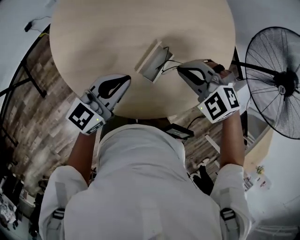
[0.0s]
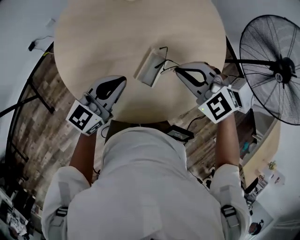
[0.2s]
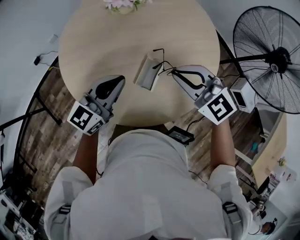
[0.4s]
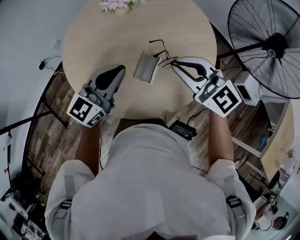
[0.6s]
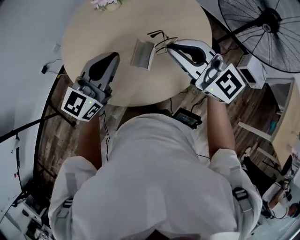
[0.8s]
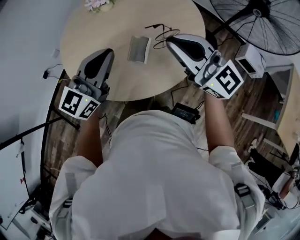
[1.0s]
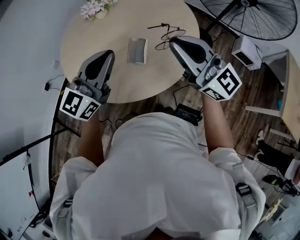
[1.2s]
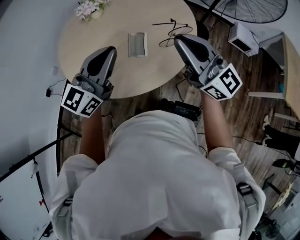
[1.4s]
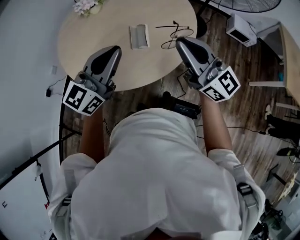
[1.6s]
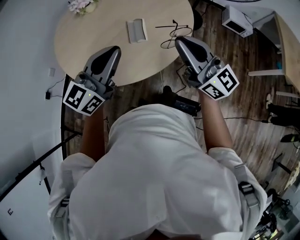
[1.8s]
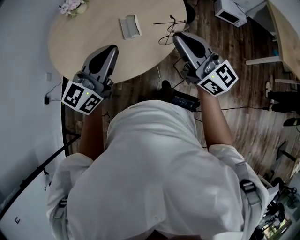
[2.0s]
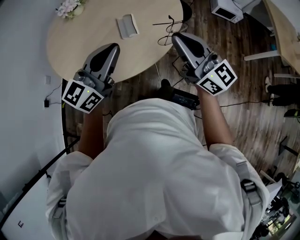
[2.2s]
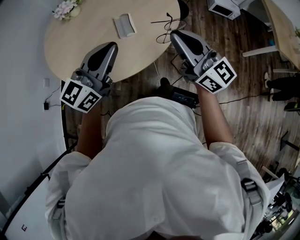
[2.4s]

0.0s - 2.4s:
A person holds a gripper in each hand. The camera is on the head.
0.0s - 1.2s: The left gripper travels upward by about 25 cm, and turns by roughly 20 degrees, while the right gripper moves upward and backward, about 30 cm, and tilts its fingers roughly 70 degrees upward.
1.2s - 2.4s: The right gripper moves about 20 cm, and changes its angle by some 30 degrees. The left gripper ends up approximately 15 cm from where it was, and rotates roughly 20 degrees.

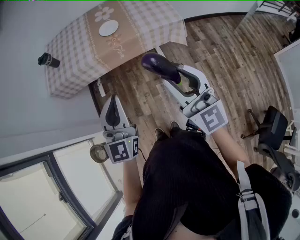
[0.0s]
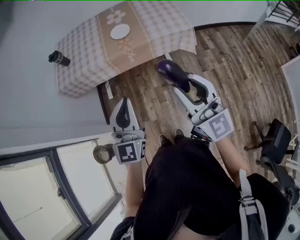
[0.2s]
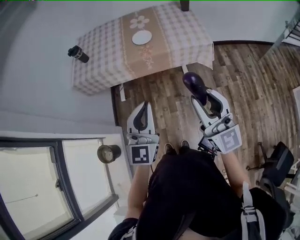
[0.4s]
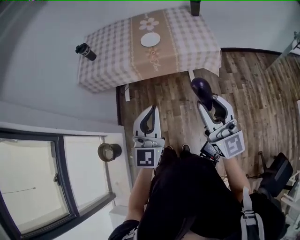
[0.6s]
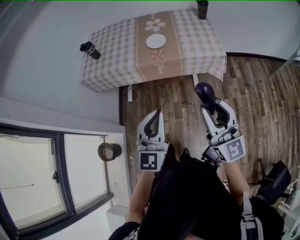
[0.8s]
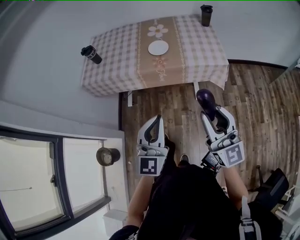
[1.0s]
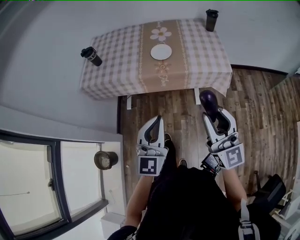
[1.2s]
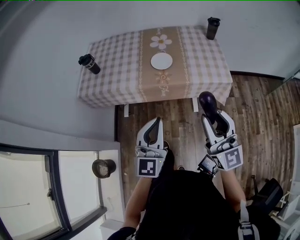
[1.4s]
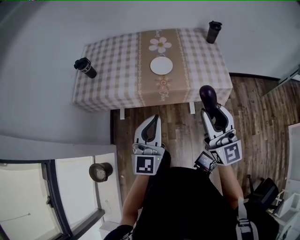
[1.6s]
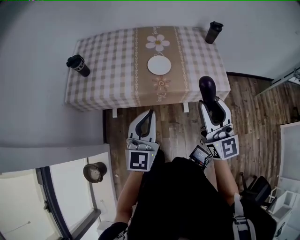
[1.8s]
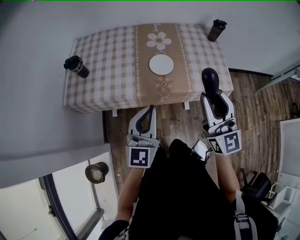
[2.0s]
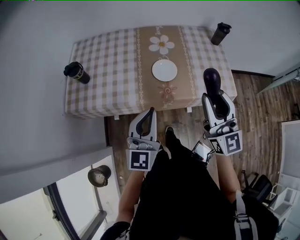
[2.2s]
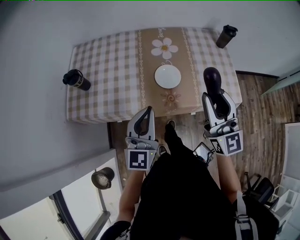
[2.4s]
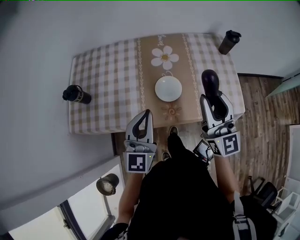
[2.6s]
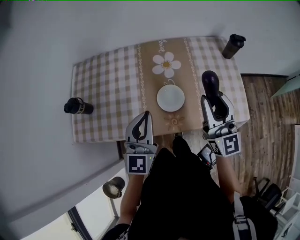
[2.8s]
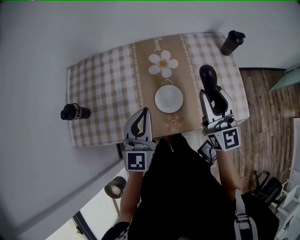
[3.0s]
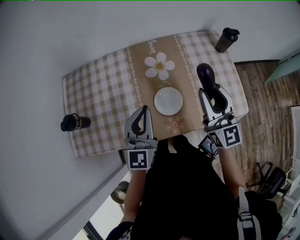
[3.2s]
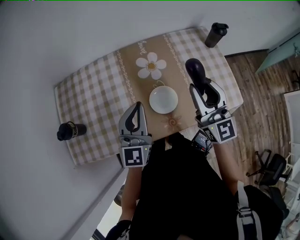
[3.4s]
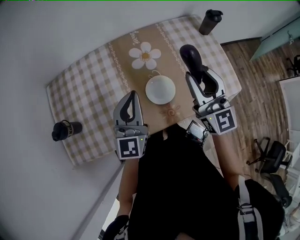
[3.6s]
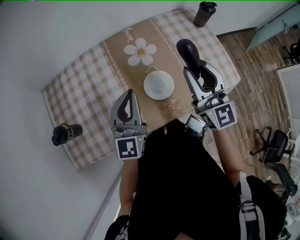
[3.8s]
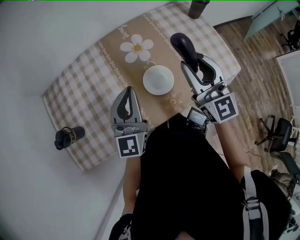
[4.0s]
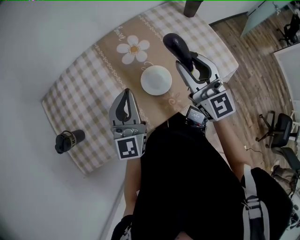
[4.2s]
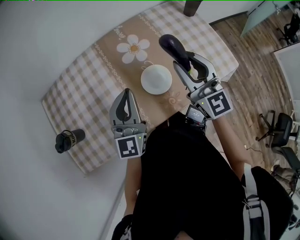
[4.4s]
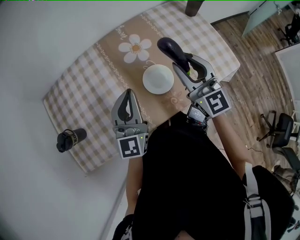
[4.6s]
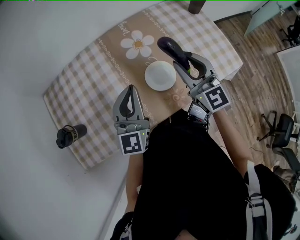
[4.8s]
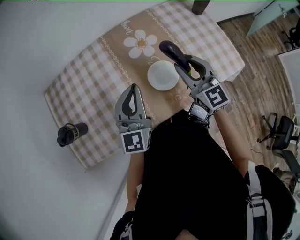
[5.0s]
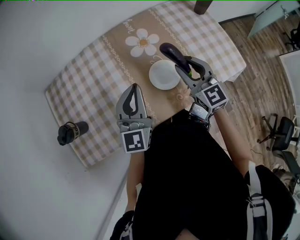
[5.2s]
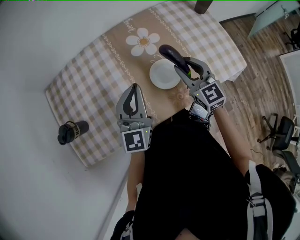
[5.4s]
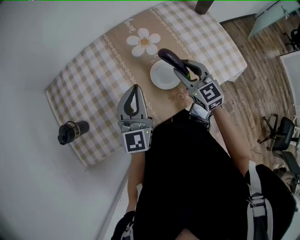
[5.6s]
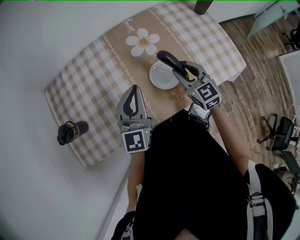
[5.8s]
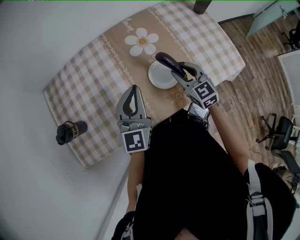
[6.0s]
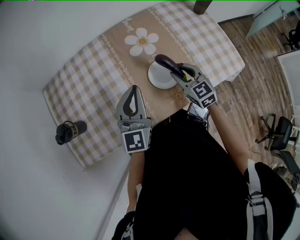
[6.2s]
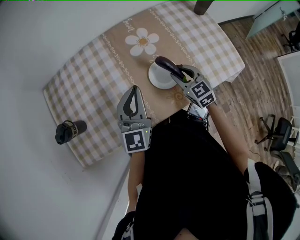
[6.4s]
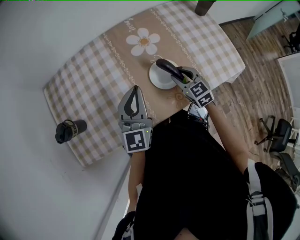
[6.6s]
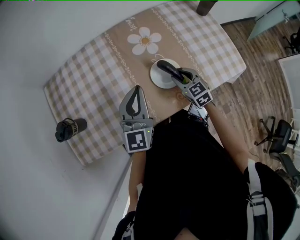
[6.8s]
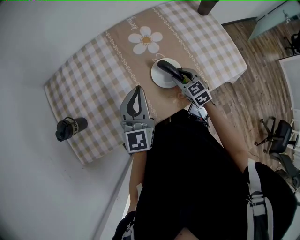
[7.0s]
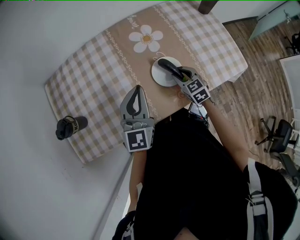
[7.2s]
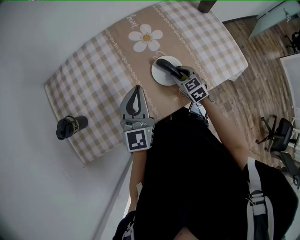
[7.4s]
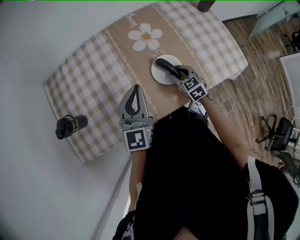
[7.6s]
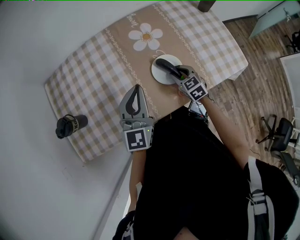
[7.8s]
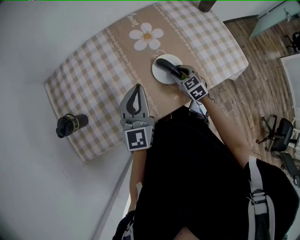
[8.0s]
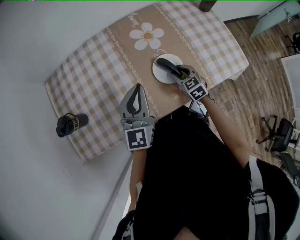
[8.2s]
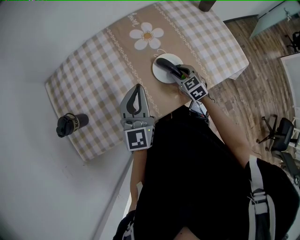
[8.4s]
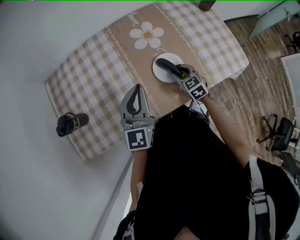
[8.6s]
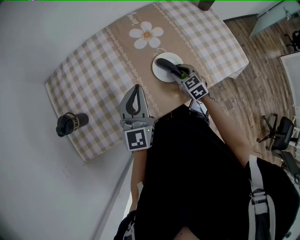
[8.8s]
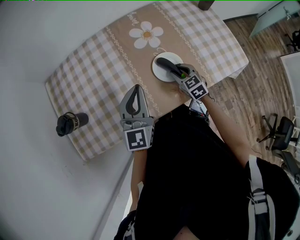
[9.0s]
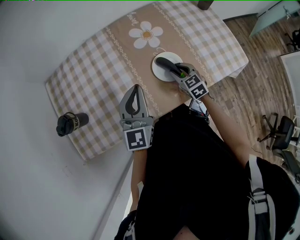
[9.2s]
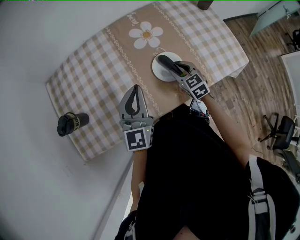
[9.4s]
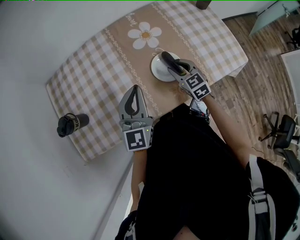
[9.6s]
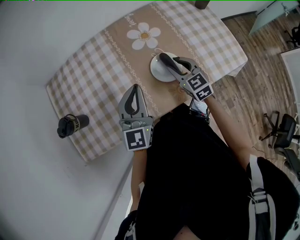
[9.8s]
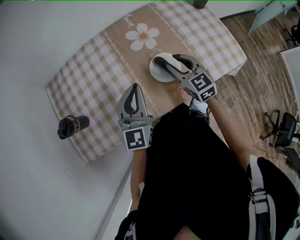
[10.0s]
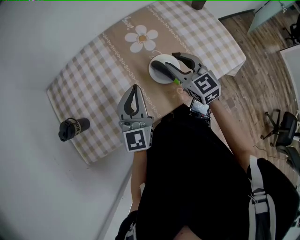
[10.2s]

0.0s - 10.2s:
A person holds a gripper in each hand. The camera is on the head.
0.0s - 1.4s: The grippers both shift forward by approximately 15 cm.
1.4s - 3.0s: Both grippers are carried forward, some 50 cm.
3.0s - 4.4s: The left gripper changes place by some 5 cm. Meanwhile the right gripper heads to the left, covering roughly 5 cm.
4.4s - 5.8s: The right gripper shifts about 15 cm downward, and changes its angle by some 20 degrees.
5.8s - 7.2s: The right gripper shifts roughly 10 cm downward.
7.2s - 8.8s: The grippers stay close to where they were, moving slightly.
8.8s - 10.2s: The right gripper heads upward, covering about 20 cm, and changes its angle by some 20 degrees.

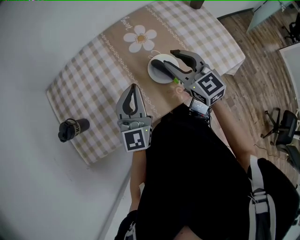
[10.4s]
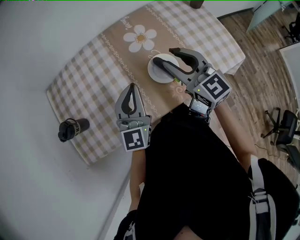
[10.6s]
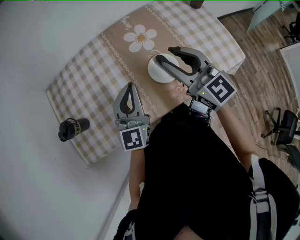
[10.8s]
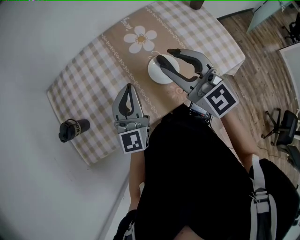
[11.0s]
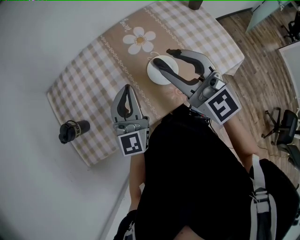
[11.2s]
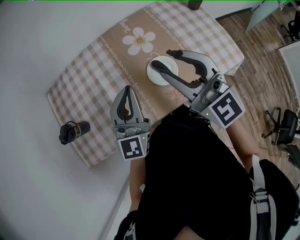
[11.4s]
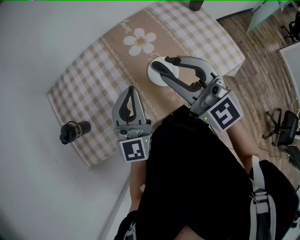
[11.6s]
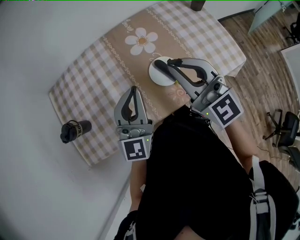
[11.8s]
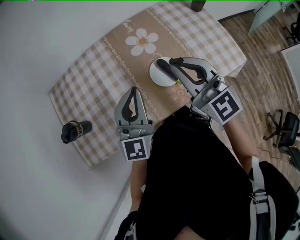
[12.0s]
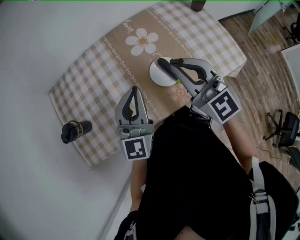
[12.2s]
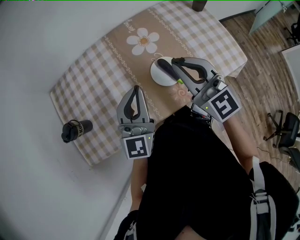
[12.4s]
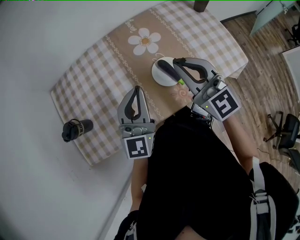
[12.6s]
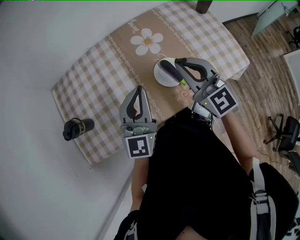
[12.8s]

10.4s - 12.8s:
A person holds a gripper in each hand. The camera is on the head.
10.4s - 11.6s: The right gripper is displaced upward and backward by approximately 15 cm, and changes its angle by some 30 degrees. The left gripper heads upward, covering about 5 cm.
11.6s - 12.8s: The right gripper goes approximately 5 cm downward, and closes up.

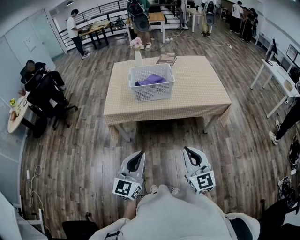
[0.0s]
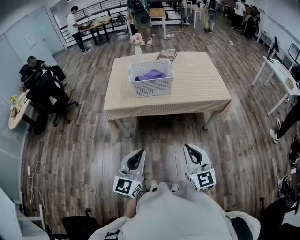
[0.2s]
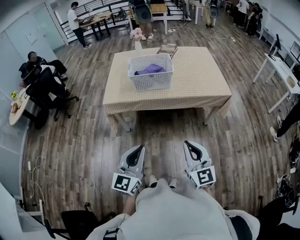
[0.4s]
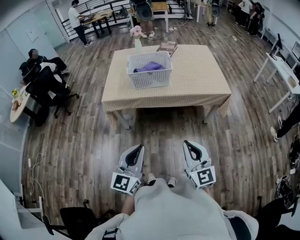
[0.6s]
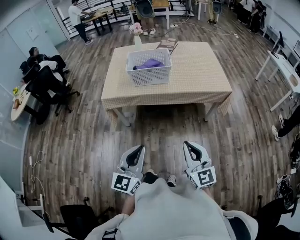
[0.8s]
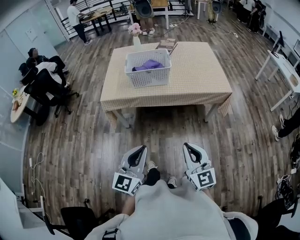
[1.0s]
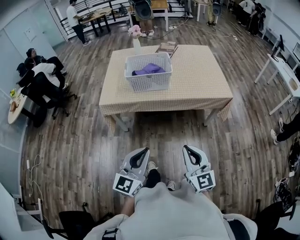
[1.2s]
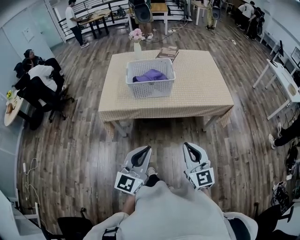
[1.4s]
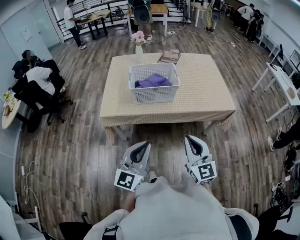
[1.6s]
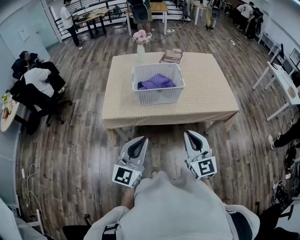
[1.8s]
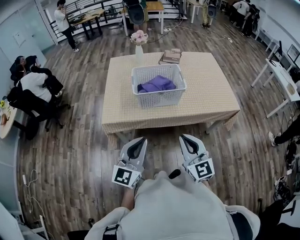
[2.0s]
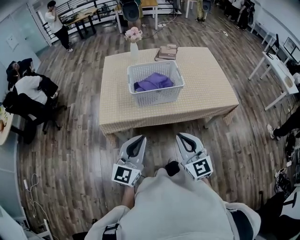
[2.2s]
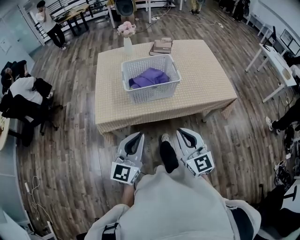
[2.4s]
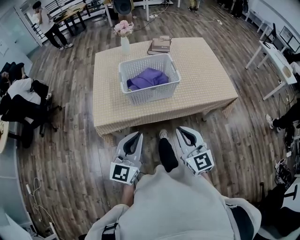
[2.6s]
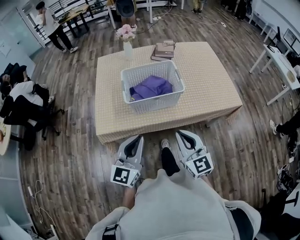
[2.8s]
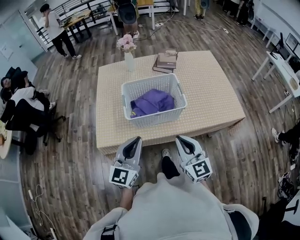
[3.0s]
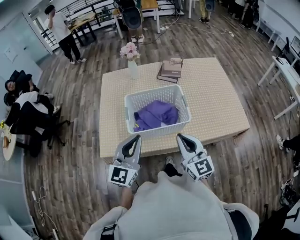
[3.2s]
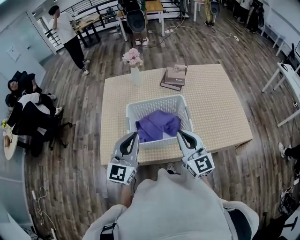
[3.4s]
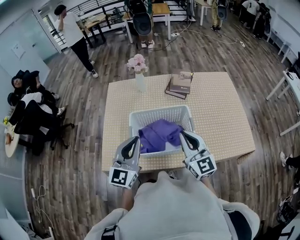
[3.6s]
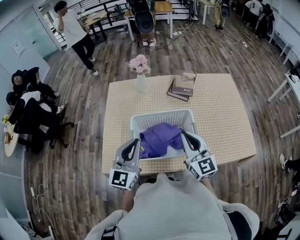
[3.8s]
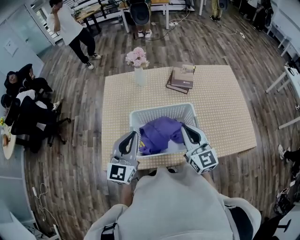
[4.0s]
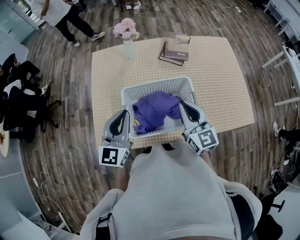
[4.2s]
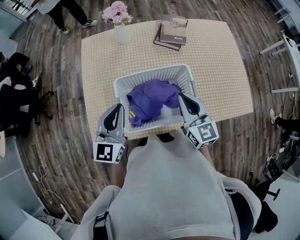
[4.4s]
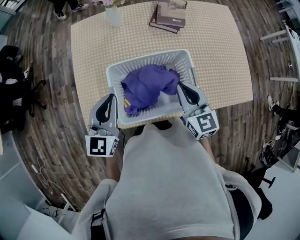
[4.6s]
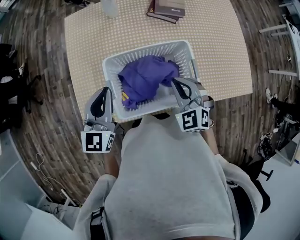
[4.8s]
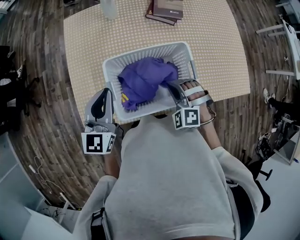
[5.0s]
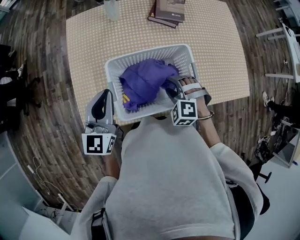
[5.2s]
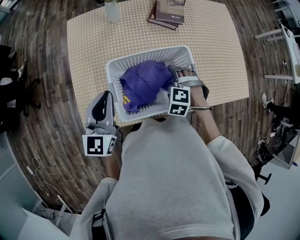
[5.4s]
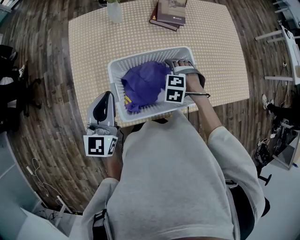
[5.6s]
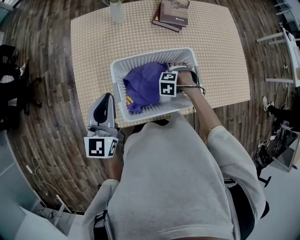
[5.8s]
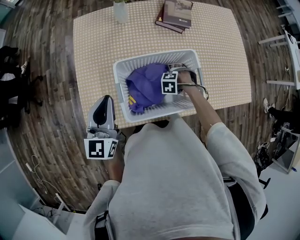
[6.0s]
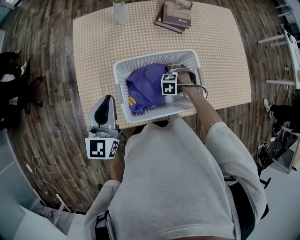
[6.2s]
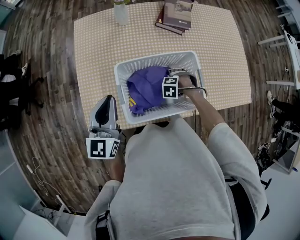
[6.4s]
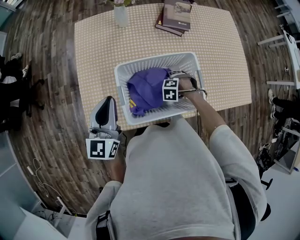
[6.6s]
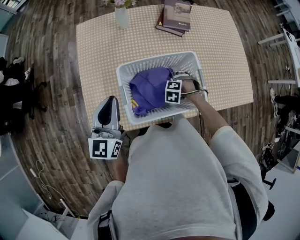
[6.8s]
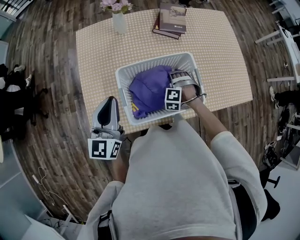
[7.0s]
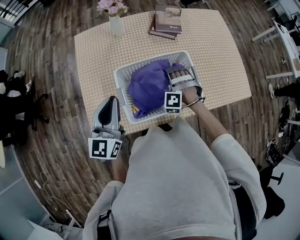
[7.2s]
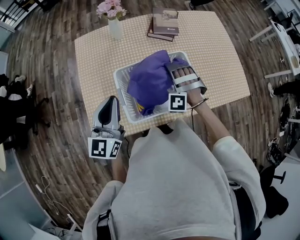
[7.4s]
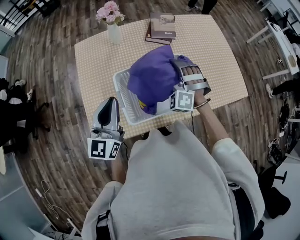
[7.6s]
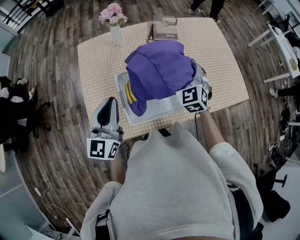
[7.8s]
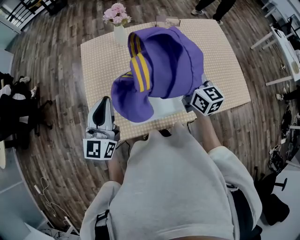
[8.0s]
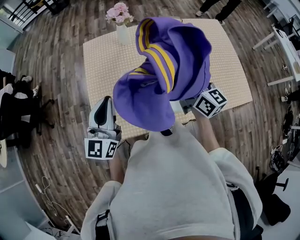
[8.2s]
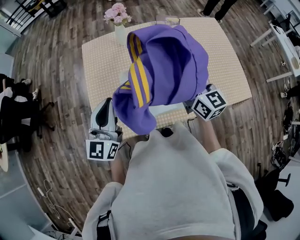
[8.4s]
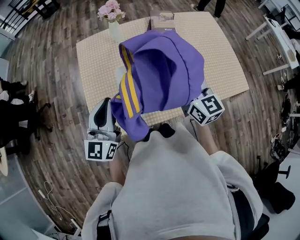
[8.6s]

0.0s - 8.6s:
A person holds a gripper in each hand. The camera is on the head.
0.0s - 1.4s: The two grippers go about 10 cm forward.
1.4s - 2.8s: Both grippers travel together forward and to the left, about 25 cm.
2.8s - 4.4s: Both grippers move forward, approximately 35 cm.
4.4s - 5.8s: The right gripper travels downward by roughly 30 cm, angles its fingers downward, by about 70 degrees, and opens up.
5.8s - 7.2s: The right gripper is displaced upward by roughly 10 cm, tips its fingers upward by about 40 degrees, and closes its fingers.
7.2s - 8.6s: The left gripper shifts by roughly 5 cm. Meanwhile the right gripper goes roughly 25 cm upward, and rolls clockwise, seen from behind, by some 90 degrees.
